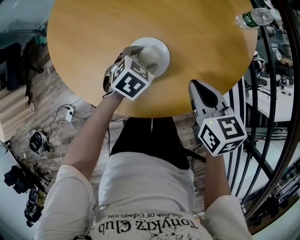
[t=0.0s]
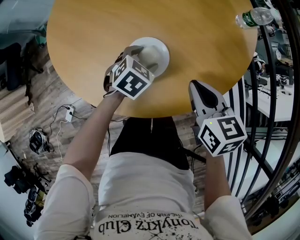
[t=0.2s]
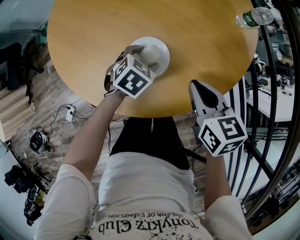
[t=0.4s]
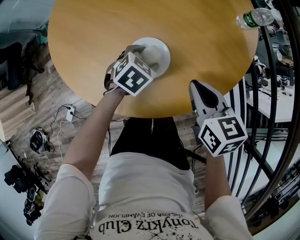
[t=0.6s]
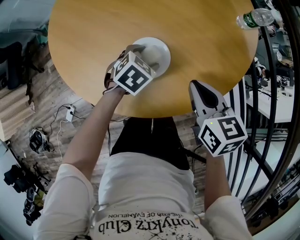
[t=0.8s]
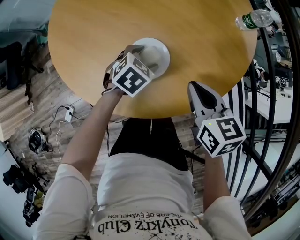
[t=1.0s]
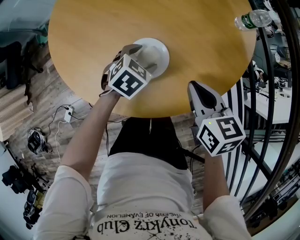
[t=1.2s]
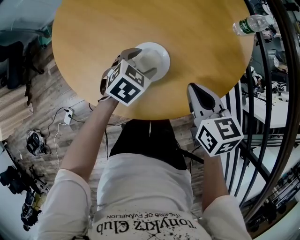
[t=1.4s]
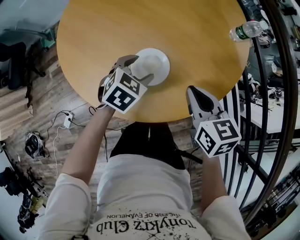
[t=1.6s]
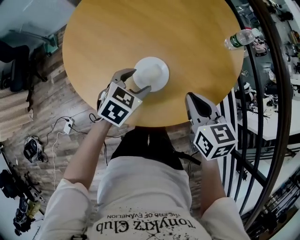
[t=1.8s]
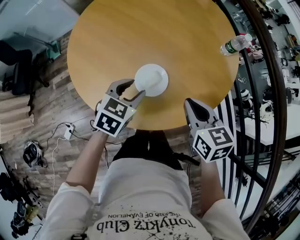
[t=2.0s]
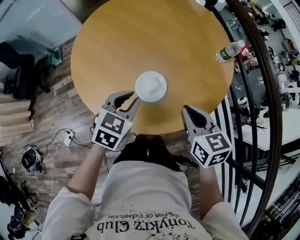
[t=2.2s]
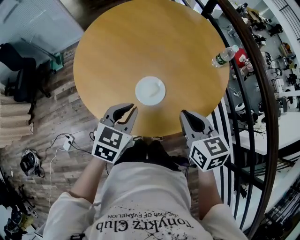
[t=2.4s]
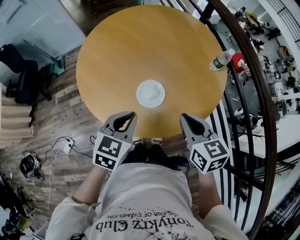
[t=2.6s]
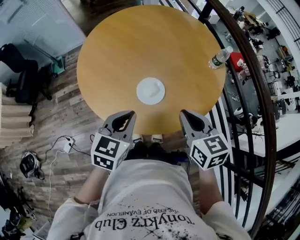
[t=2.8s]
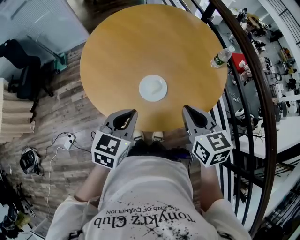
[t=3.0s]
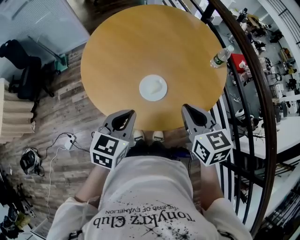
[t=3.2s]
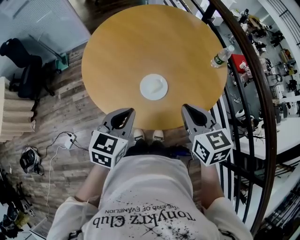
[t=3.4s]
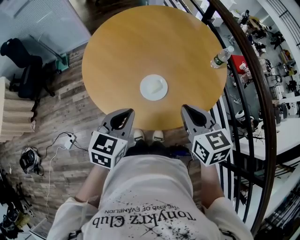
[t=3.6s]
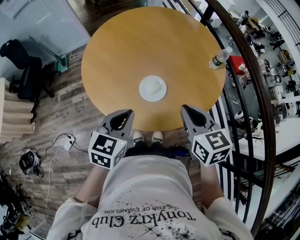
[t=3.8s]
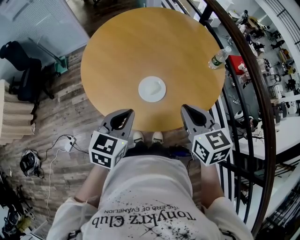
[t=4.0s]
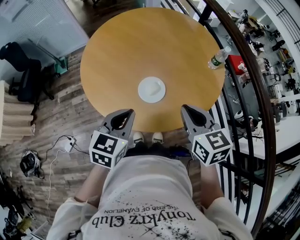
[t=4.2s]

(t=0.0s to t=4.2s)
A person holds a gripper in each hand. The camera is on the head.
t=0.0s - t=1.4s: The grippers move only a little.
t=1.4s - t=2.8s: The left gripper shifts about 25 cm upward and backward, swivels about 30 degrees, and closes; the right gripper goes some 15 cm upward and backward.
t=2.8s - t=4.2s: The grippers stay close to where they were, moving slightly.

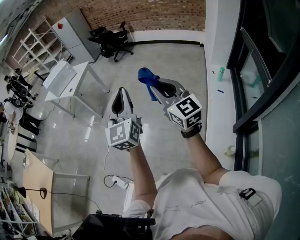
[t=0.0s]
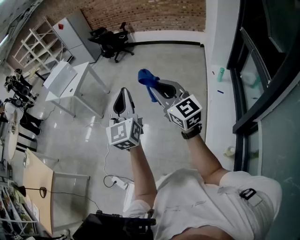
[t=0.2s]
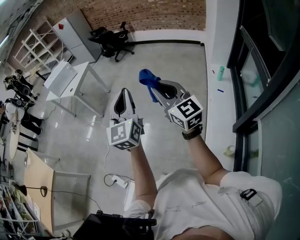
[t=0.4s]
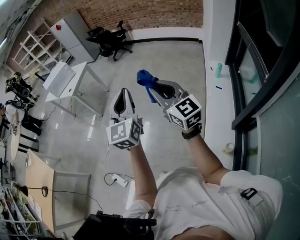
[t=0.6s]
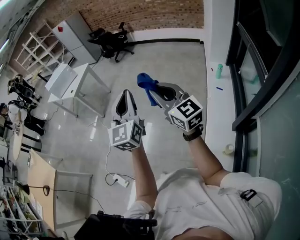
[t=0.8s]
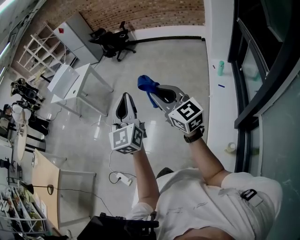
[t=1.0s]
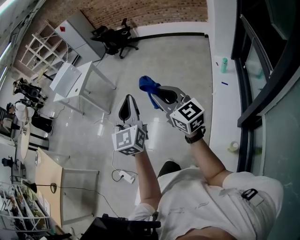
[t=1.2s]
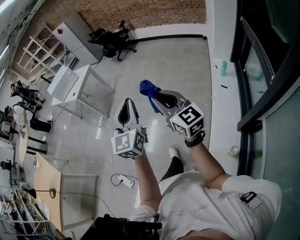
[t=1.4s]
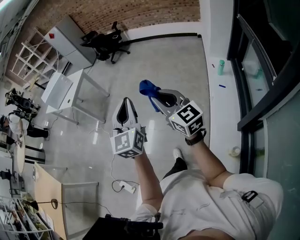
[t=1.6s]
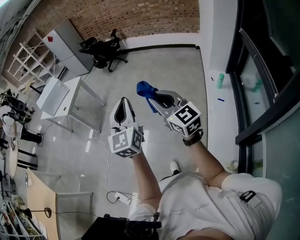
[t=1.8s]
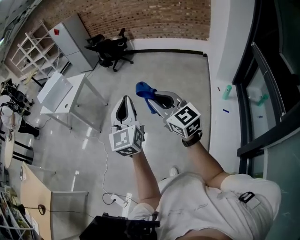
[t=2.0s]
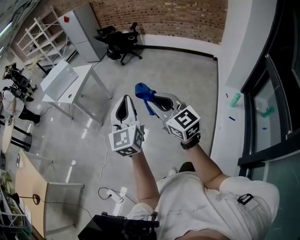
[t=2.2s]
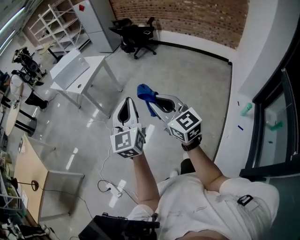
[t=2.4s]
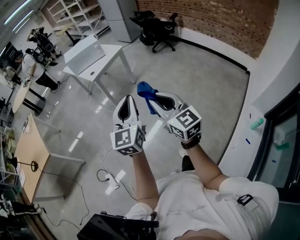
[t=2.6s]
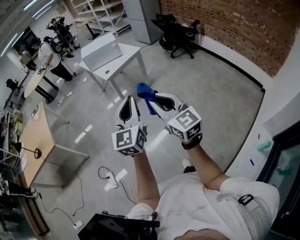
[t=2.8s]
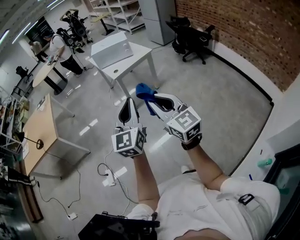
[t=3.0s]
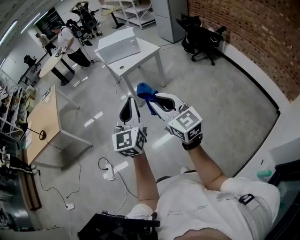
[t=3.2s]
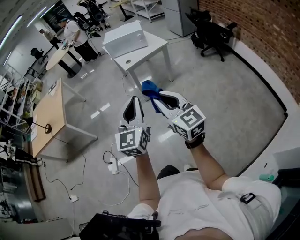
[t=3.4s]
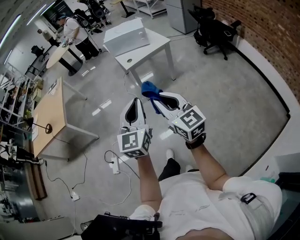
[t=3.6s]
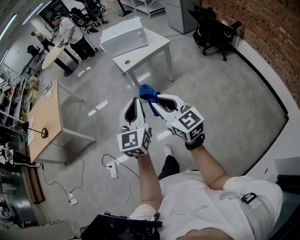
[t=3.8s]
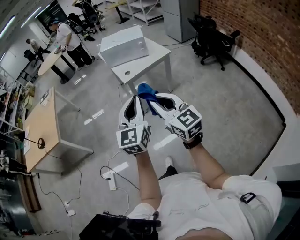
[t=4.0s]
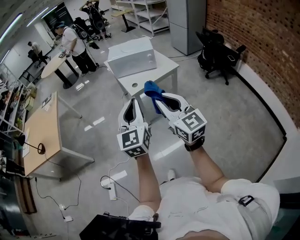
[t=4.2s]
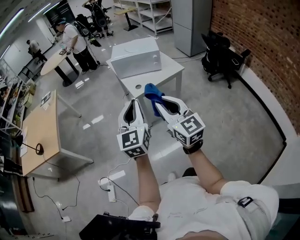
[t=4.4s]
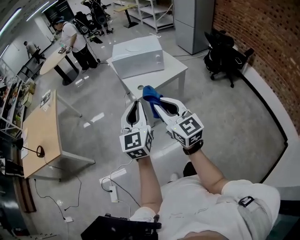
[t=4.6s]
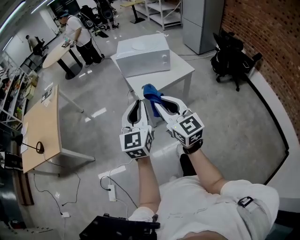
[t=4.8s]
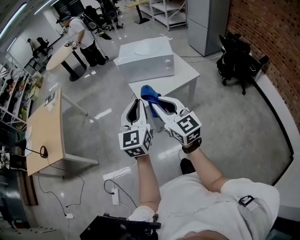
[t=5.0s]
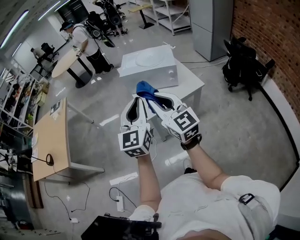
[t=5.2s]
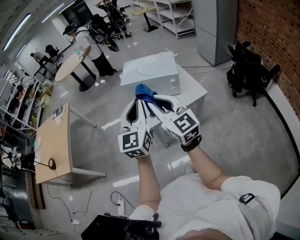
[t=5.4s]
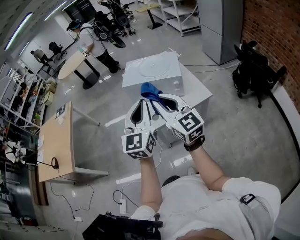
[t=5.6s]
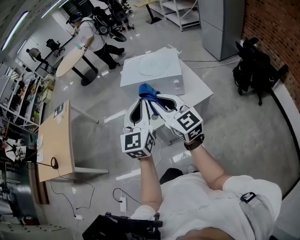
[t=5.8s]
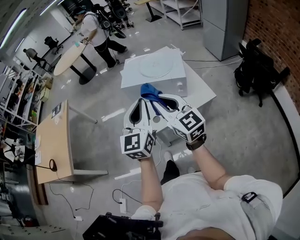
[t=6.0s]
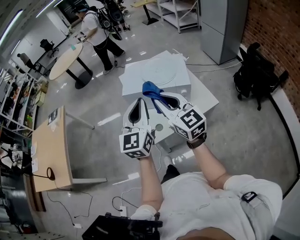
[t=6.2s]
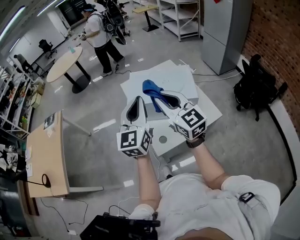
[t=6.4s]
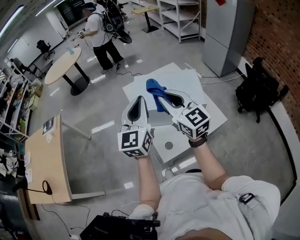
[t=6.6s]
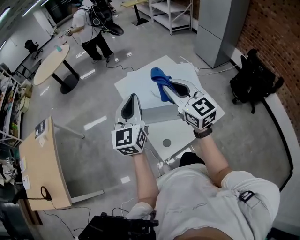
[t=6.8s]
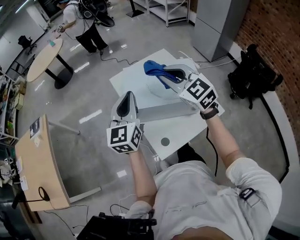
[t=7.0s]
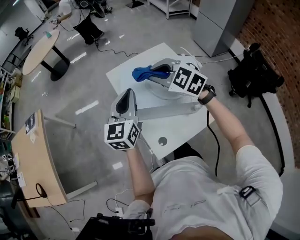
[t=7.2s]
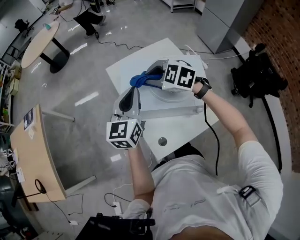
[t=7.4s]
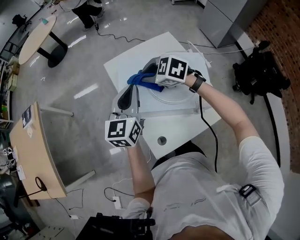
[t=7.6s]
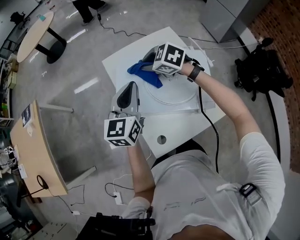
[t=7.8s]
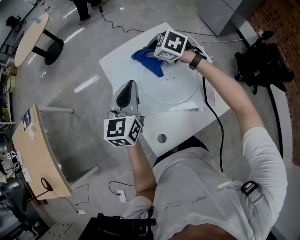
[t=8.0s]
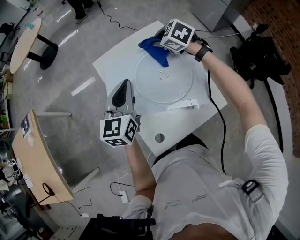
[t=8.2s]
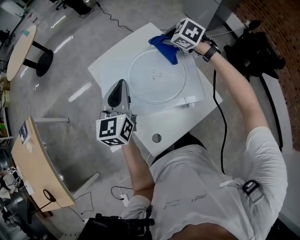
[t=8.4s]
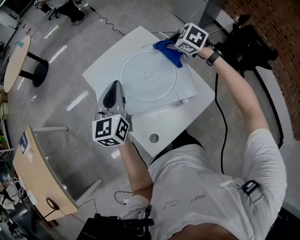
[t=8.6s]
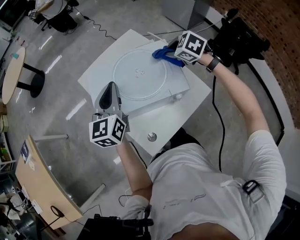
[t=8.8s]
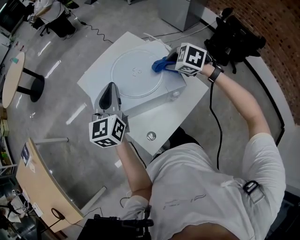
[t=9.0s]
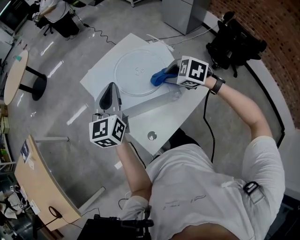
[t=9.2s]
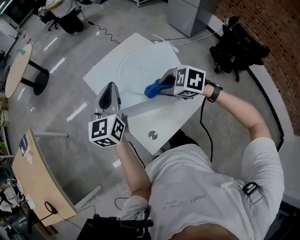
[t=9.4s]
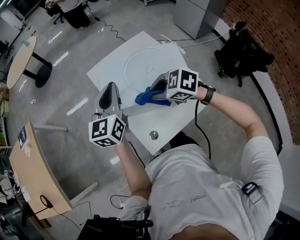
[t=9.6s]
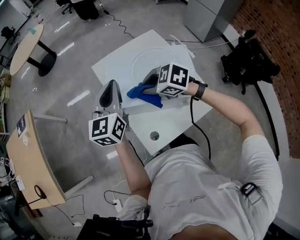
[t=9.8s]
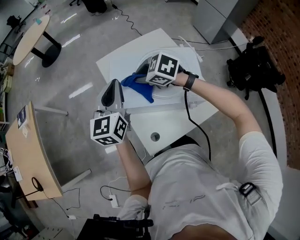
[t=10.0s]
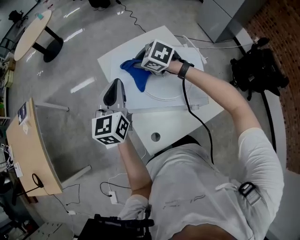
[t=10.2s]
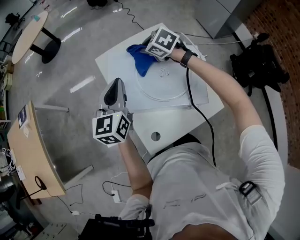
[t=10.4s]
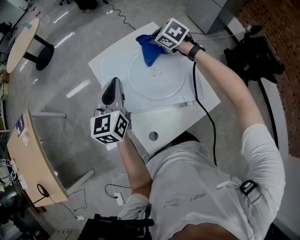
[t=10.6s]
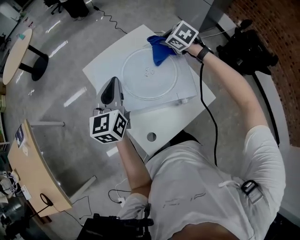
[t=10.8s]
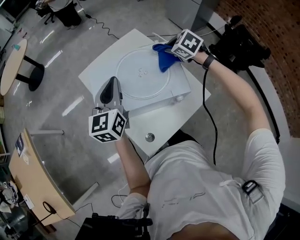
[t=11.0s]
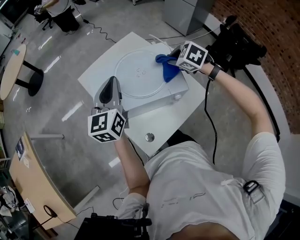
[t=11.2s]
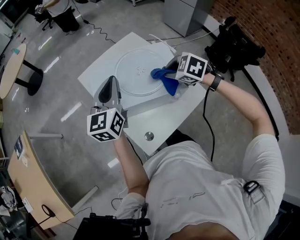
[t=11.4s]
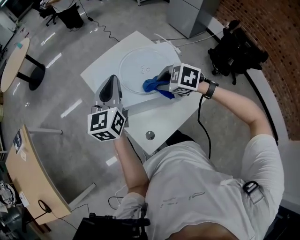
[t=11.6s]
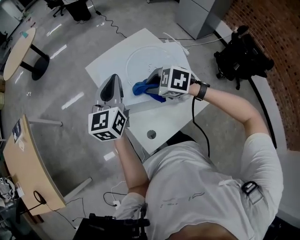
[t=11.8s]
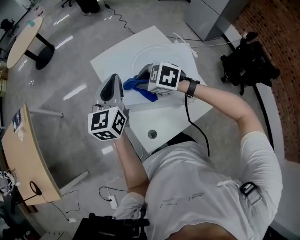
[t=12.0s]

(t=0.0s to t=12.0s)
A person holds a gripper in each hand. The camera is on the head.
t=0.0s - t=1.6s: The grippers both shift to the right and downward by about 10 cm.
t=1.6s - t=3.0s: The right gripper moves some 40 cm, and rotates approximately 40 degrees. The left gripper ends up about 35 cm from where it was, and turns by some 40 degrees.
t=3.0s - t=4.4s: Both grippers travel together forward, approximately 35 cm.
t=4.4s - t=6.0s: The two grippers go some 40 cm forward.
t=6.0s - t=7.6s: Both grippers move forward, some 35 cm. The right gripper angles its fingers downward, by approximately 50 degrees.
t=7.6s - t=9.0s: The left gripper changes place by roughly 5 cm; the right gripper is displaced to the right and backward by about 25 cm, and turns by approximately 30 degrees.
t=9.0s - t=10.4s: The right gripper heads forward and to the left, covering about 25 cm. Meanwhile the left gripper shifts roughly 10 cm forward and to the left.
t=10.4s - t=12.0s: The right gripper moves backward, approximately 15 cm, and reaches some 20 cm to the right, then returns.

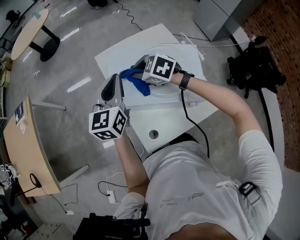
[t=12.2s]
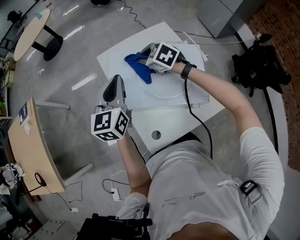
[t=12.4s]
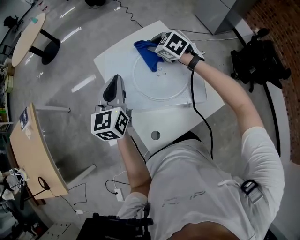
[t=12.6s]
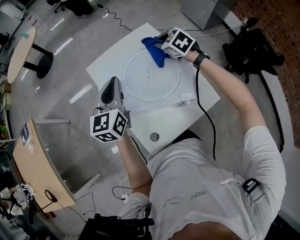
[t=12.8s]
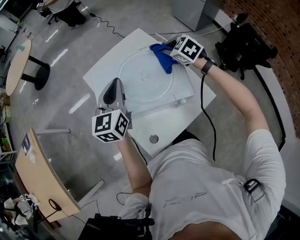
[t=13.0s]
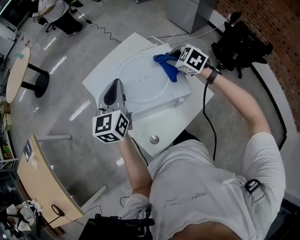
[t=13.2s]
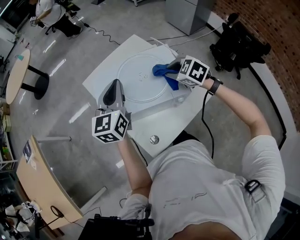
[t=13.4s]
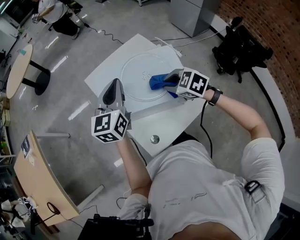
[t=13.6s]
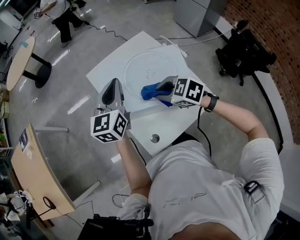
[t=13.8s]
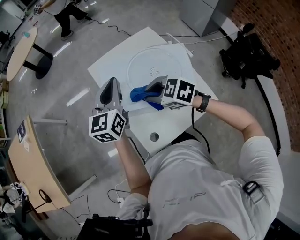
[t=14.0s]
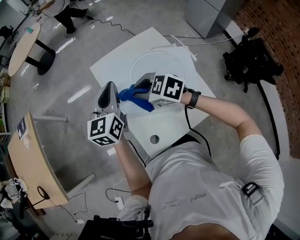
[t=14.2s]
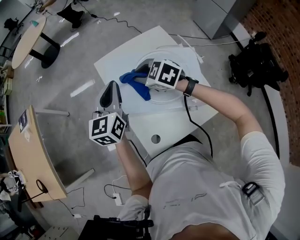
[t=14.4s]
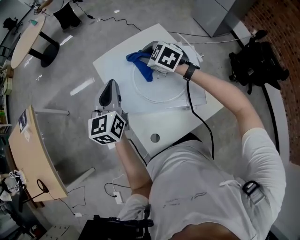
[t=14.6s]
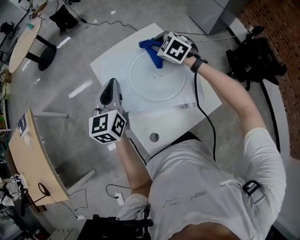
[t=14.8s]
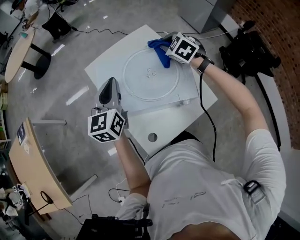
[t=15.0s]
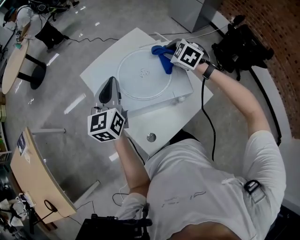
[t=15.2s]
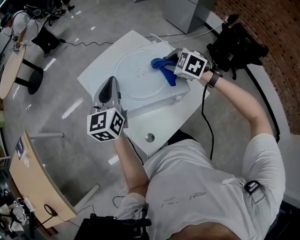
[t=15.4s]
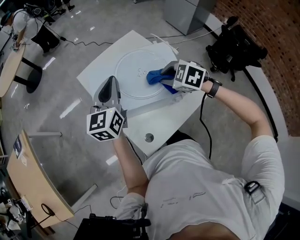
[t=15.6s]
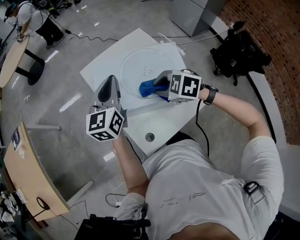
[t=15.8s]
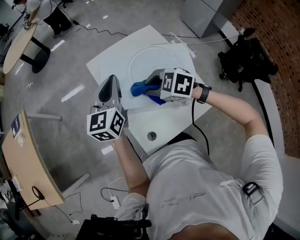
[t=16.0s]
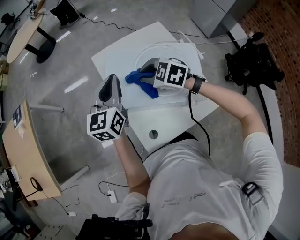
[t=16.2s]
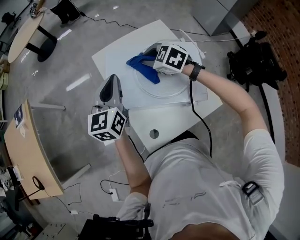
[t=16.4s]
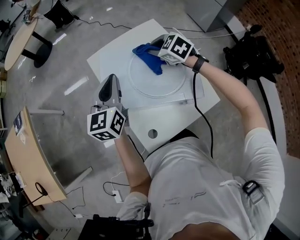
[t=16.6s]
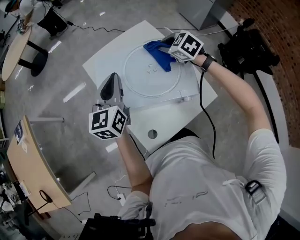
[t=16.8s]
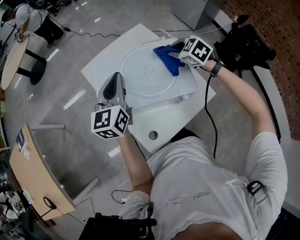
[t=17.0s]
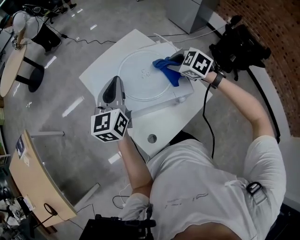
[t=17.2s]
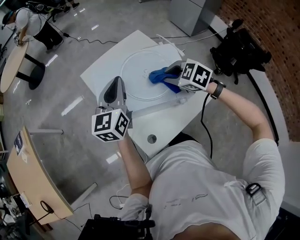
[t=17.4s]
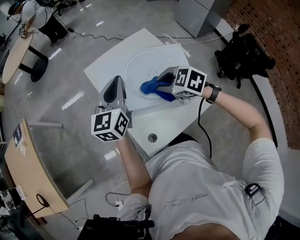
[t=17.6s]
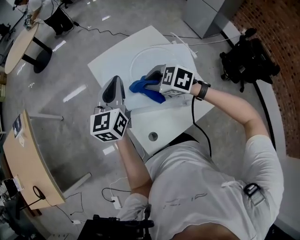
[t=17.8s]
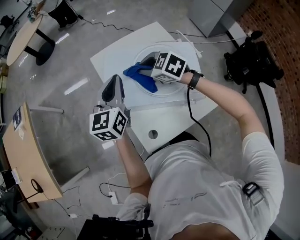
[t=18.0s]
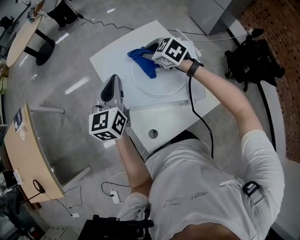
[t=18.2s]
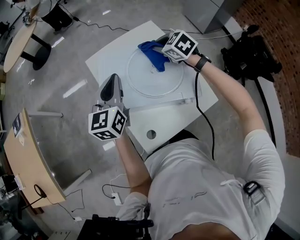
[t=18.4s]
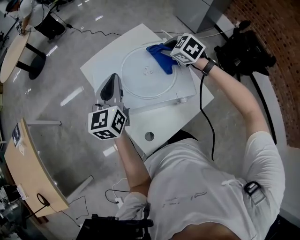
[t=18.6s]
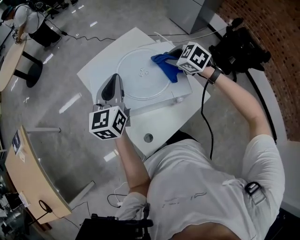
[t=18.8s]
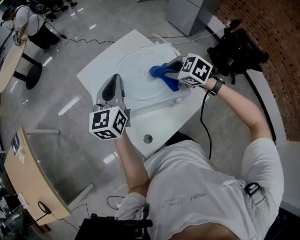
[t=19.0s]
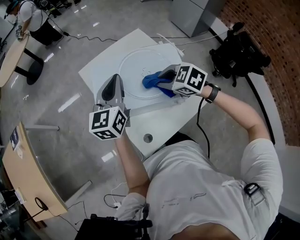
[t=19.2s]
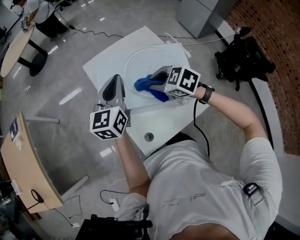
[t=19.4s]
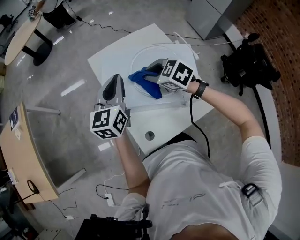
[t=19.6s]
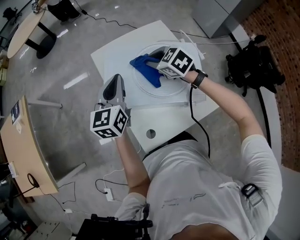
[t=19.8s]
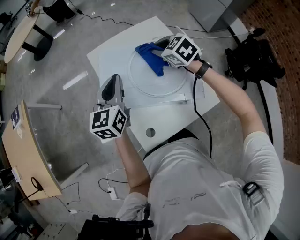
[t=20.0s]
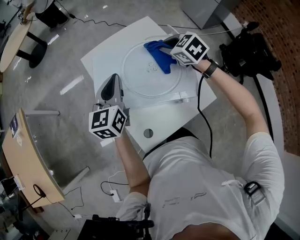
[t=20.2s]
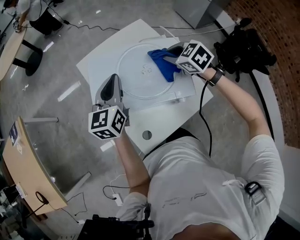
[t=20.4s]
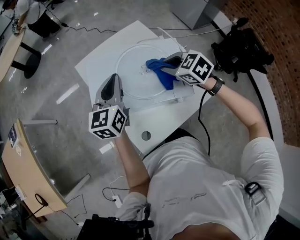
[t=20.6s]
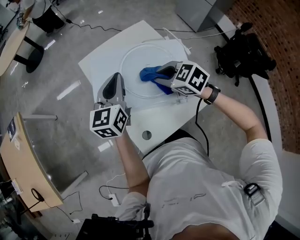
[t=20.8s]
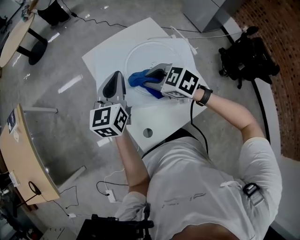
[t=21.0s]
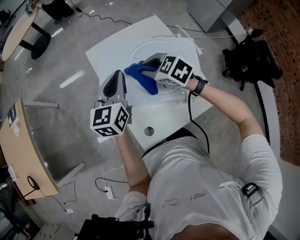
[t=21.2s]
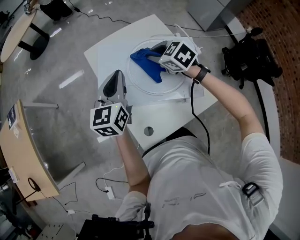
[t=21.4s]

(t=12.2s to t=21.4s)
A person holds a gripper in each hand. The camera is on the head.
t=12.2s - t=13.8s: The right gripper heads backward and to the right, covering about 15 cm. The left gripper heads to the right, covering about 5 cm.
t=13.8s - t=15.2s: The right gripper changes place by approximately 20 cm, and changes its angle by roughly 30 degrees.
t=16.8s - t=18.4s: The right gripper swings left and right, roughly 20 cm each way, with 2 reversals.
t=18.4s - t=19.8s: The right gripper travels to the left by some 10 cm.
t=19.8s - t=21.4s: The right gripper goes left and right, some 15 cm each way, reversing 2 times.
